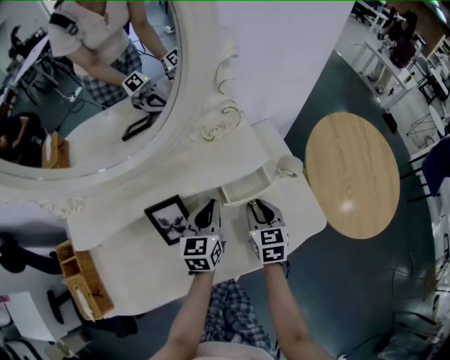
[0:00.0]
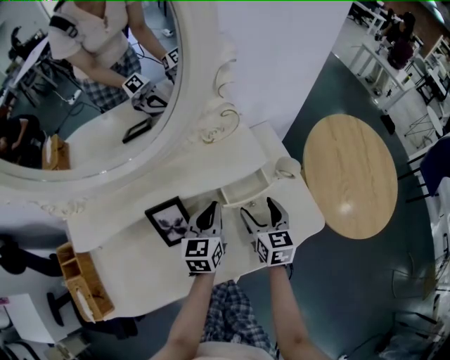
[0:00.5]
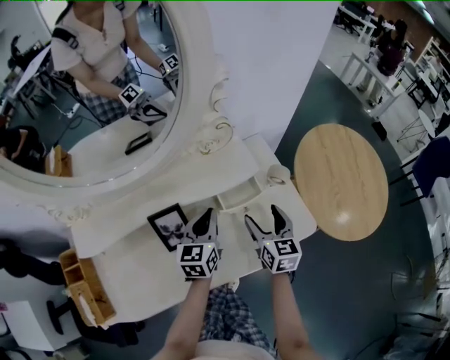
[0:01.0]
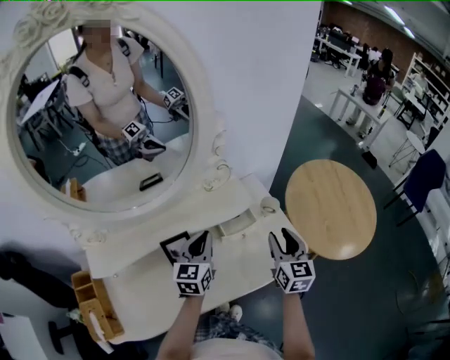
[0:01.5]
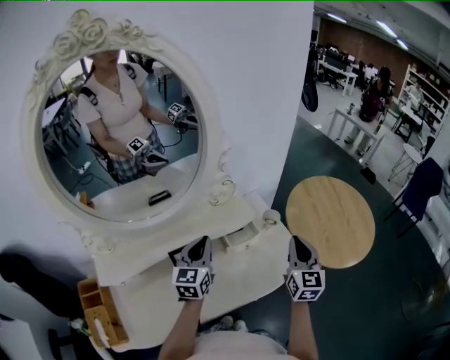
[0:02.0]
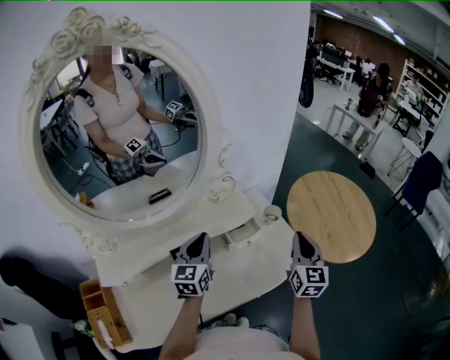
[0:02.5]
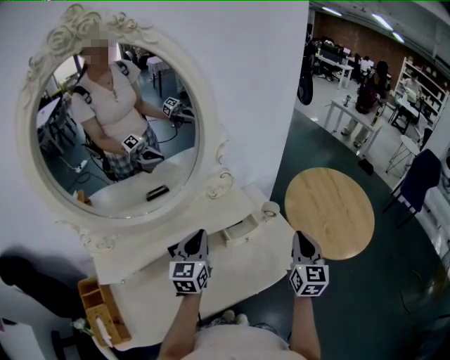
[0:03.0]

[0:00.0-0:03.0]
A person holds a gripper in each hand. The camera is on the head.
0:00.0 to 0:01.5: The right gripper travels upward and to the right by about 20 cm, rotates some 20 degrees, and opens, then closes again. Meanwhile the left gripper shifts roughly 15 cm upward.
0:01.5 to 0:03.0: The right gripper moves upward, approximately 5 cm, and closes its fingers. The left gripper changes place by approximately 5 cm.

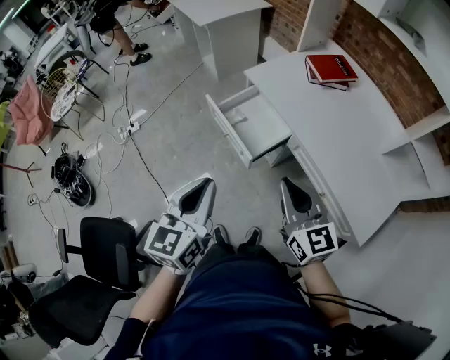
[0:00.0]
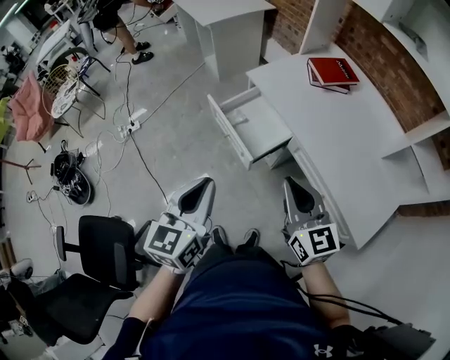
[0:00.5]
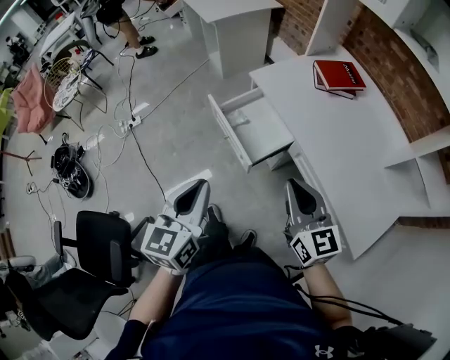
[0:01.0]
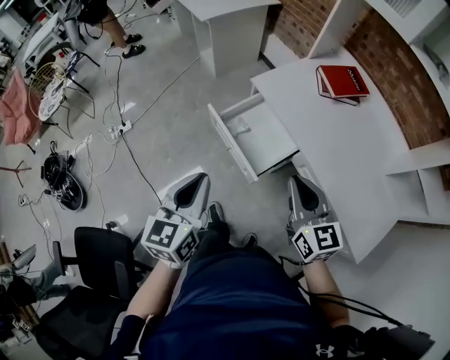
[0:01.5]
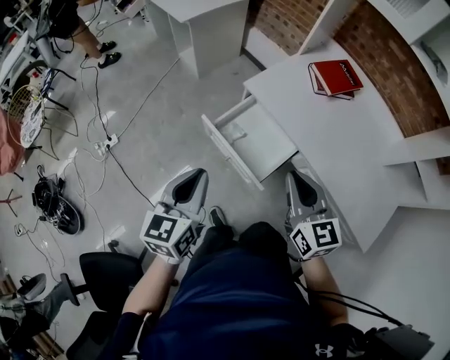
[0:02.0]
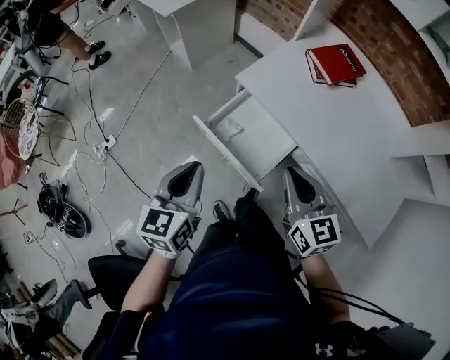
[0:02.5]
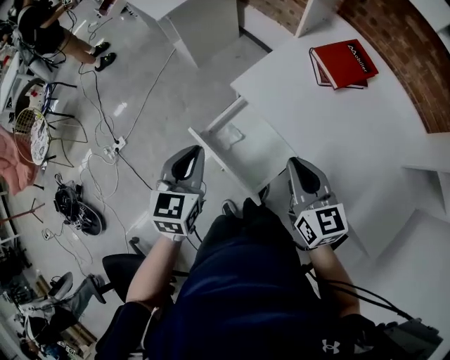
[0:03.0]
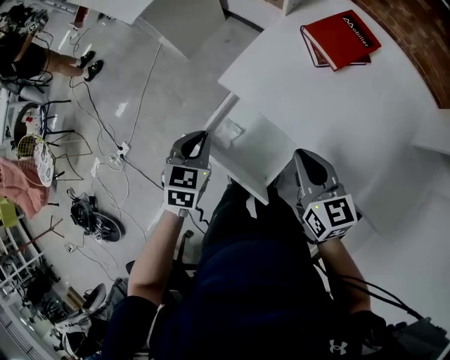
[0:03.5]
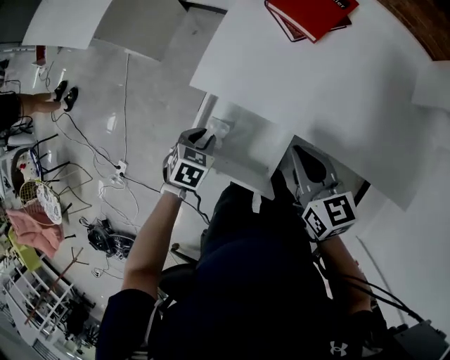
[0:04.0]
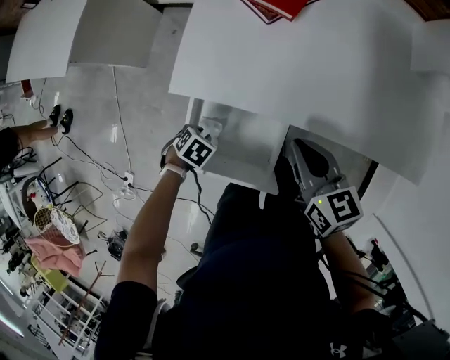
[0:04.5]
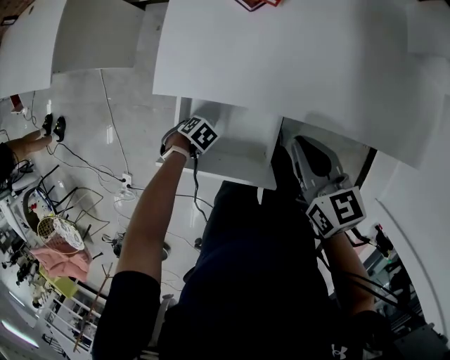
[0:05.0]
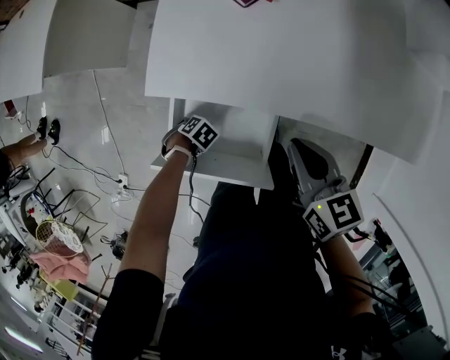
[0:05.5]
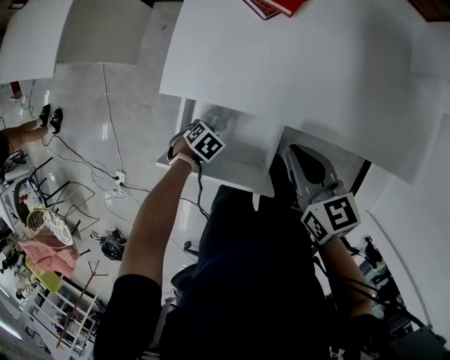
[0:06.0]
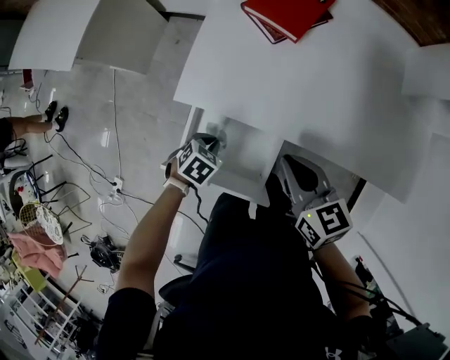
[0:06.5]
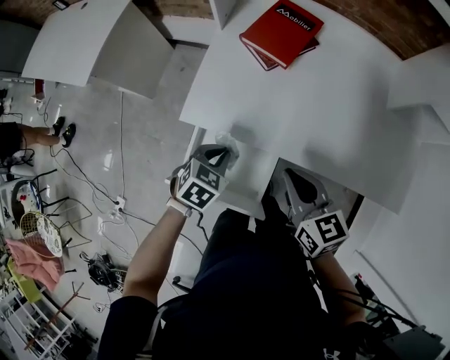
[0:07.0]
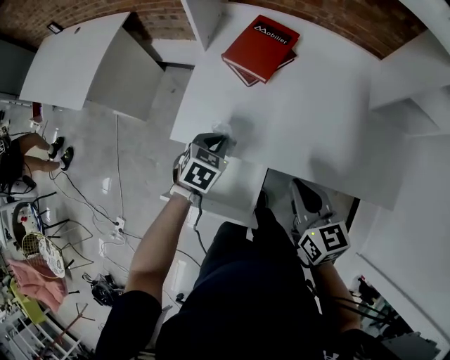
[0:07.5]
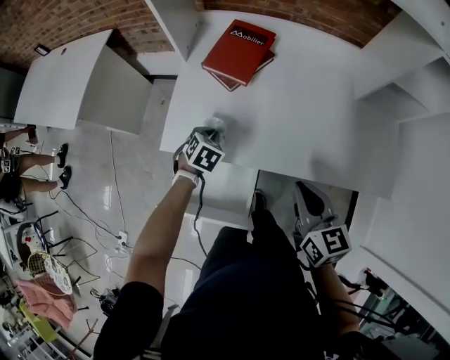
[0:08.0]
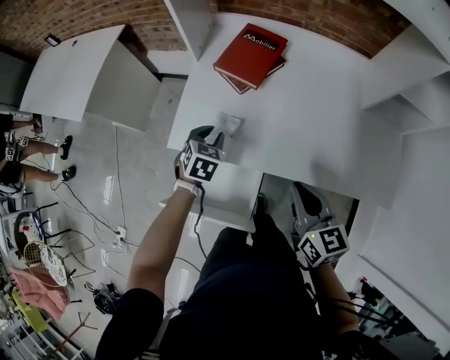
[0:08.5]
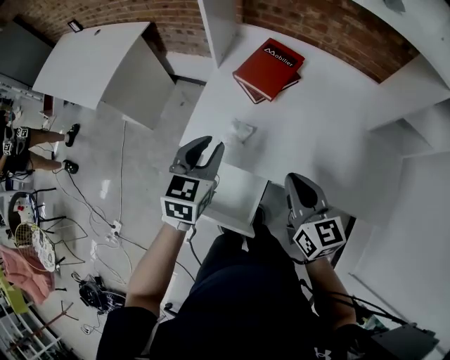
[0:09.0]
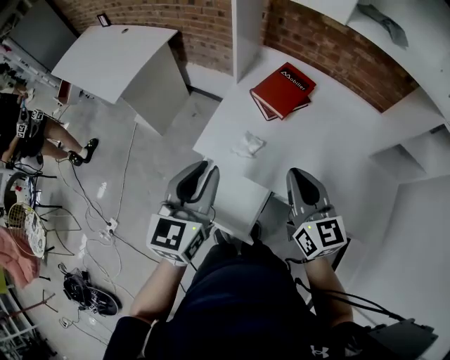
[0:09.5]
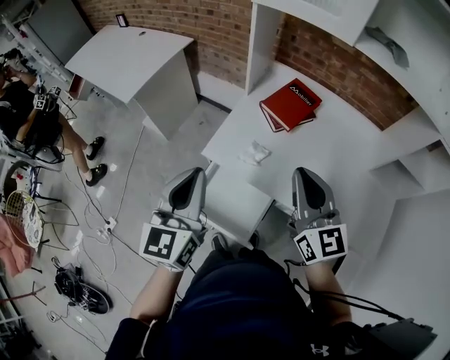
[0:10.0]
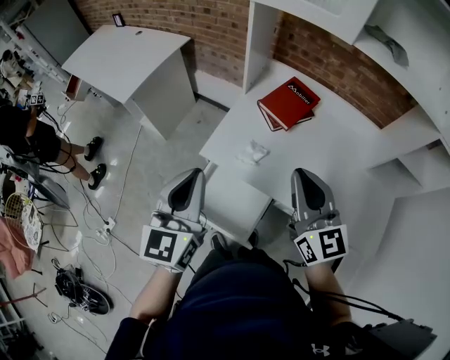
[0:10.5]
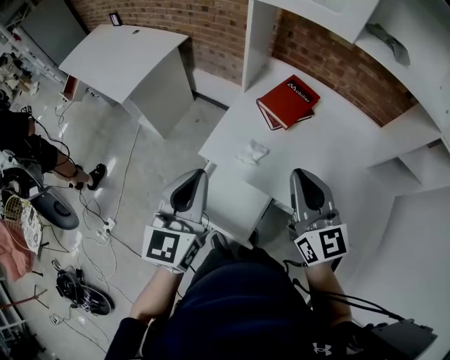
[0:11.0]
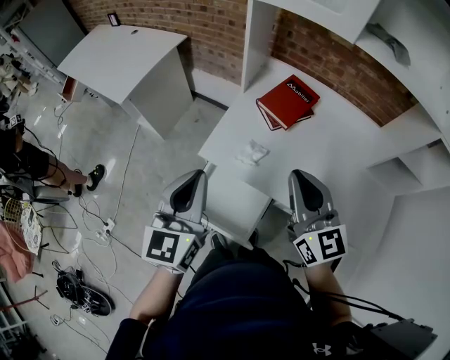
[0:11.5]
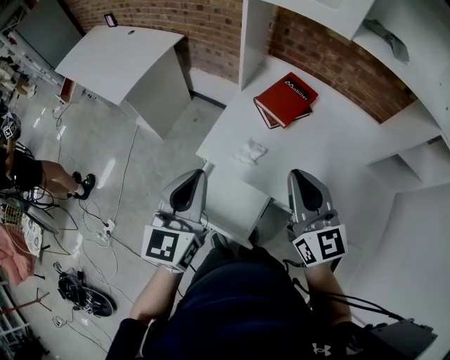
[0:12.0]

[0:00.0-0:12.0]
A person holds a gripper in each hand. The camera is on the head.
0:00.0 to 0:02.0: The right gripper moves forward, roughly 20 cm, while the left gripper goes approximately 25 cm forward and to the left.
0:02.0 to 0:04.0: The right gripper shifts by approximately 25 cm, and turns by roughly 30 degrees, while the left gripper goes roughly 25 cm downward, tilts its fingers some 50 degrees downward, and opens.
0:04.0 to 0:06.0: The left gripper shifts approximately 15 cm downward, rotates some 30 degrees, and closes.
0:06.0 to 0:08.0: The left gripper shifts by approximately 30 cm, and rotates approximately 30 degrees, while the right gripper moves some 15 cm.
0:08.0 to 0:10.0: The right gripper travels upward and to the left by roughly 20 cm, and rotates about 30 degrees, while the left gripper heads upward and backward, covering roughly 40 cm, tilts its fingers approximately 60 degrees upward, and opens and closes again.
0:10.0 to 0:12.0: There are only small adjustments of the grippers.

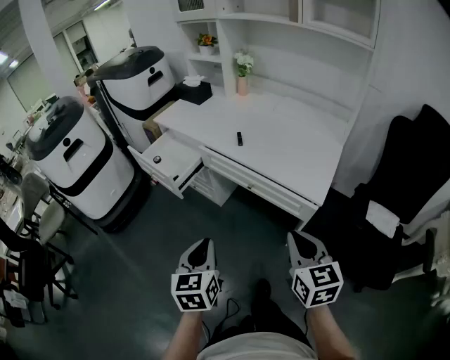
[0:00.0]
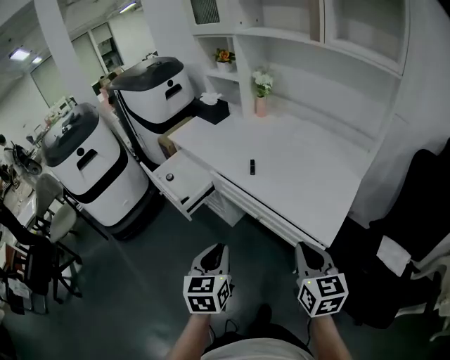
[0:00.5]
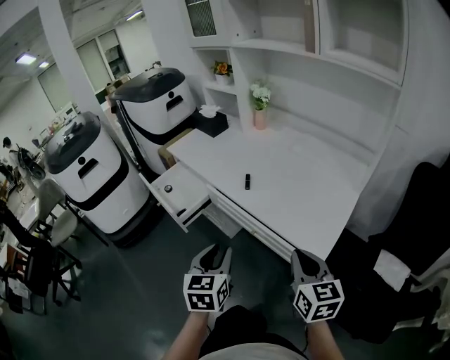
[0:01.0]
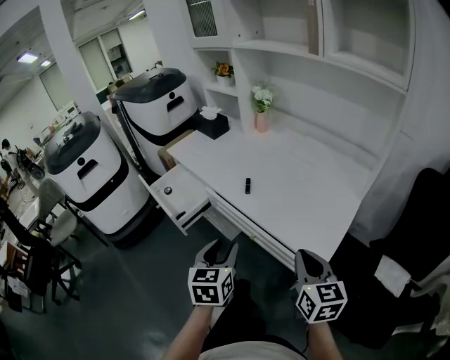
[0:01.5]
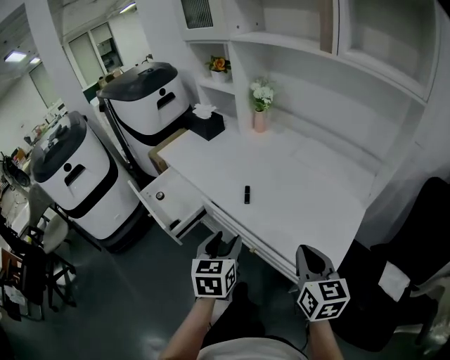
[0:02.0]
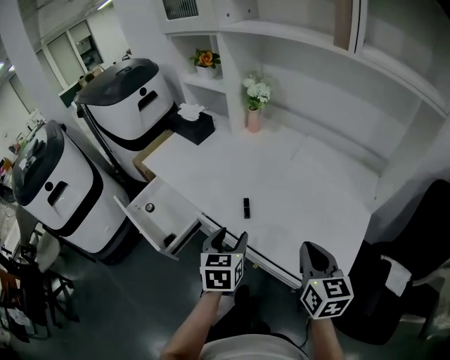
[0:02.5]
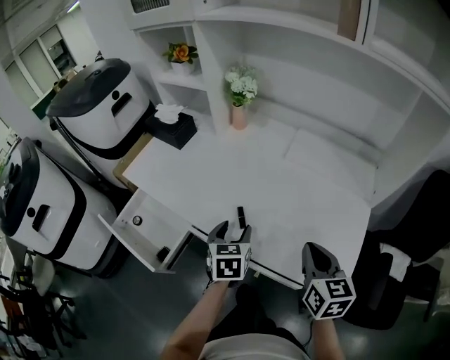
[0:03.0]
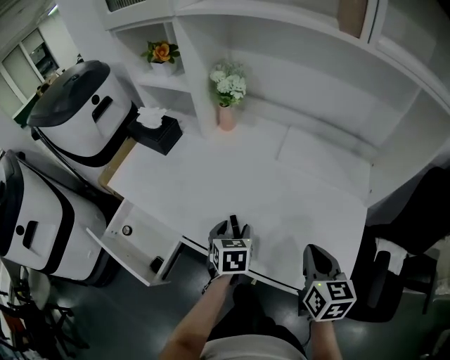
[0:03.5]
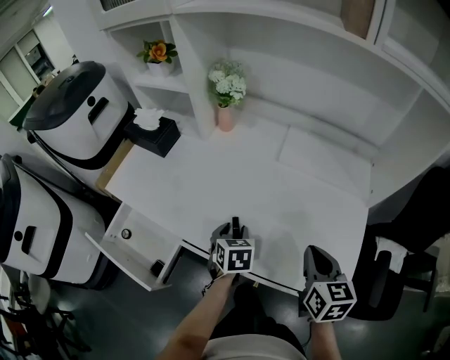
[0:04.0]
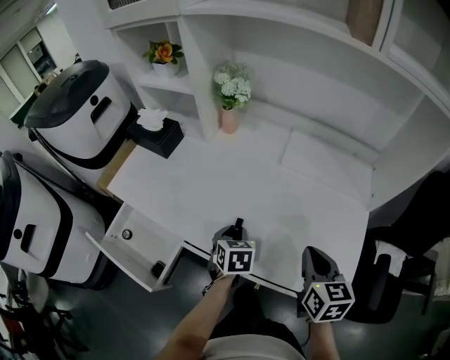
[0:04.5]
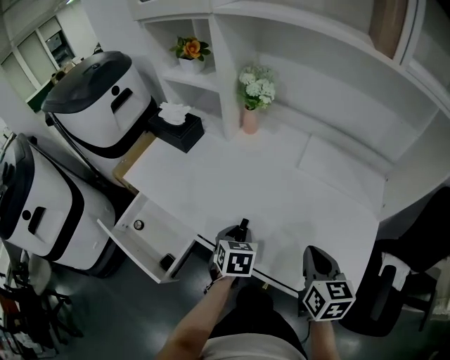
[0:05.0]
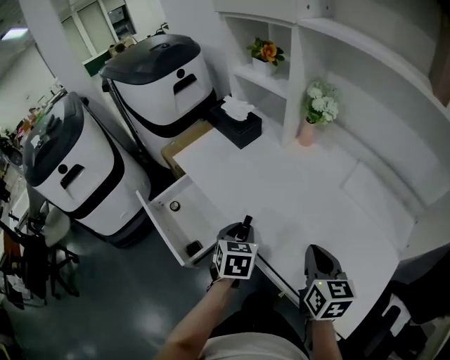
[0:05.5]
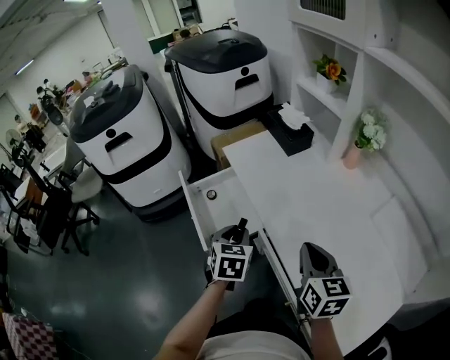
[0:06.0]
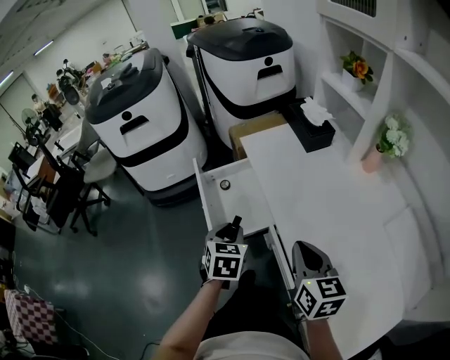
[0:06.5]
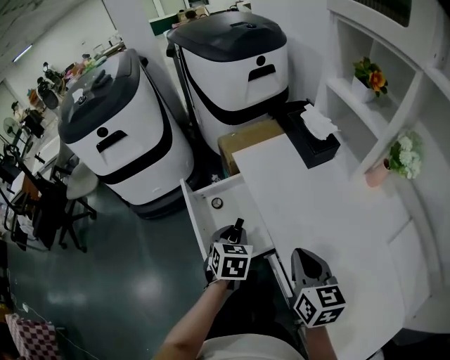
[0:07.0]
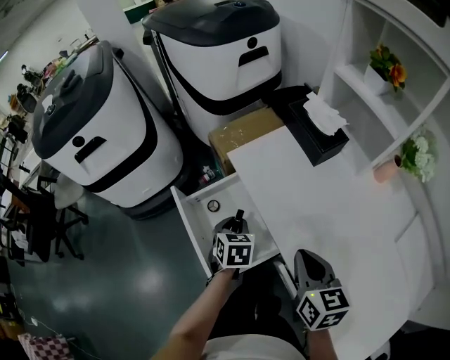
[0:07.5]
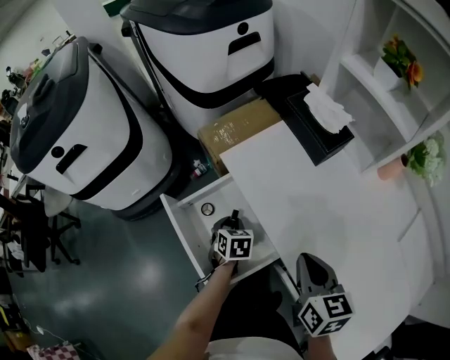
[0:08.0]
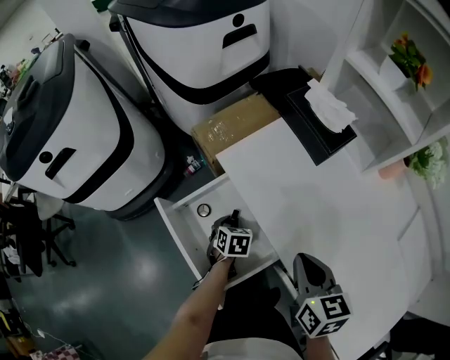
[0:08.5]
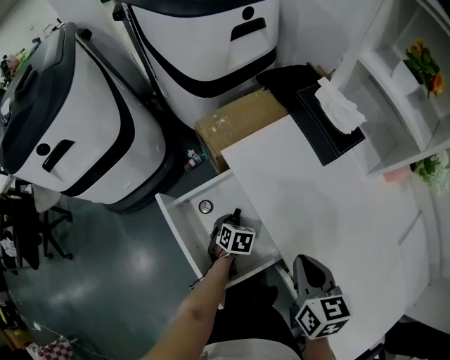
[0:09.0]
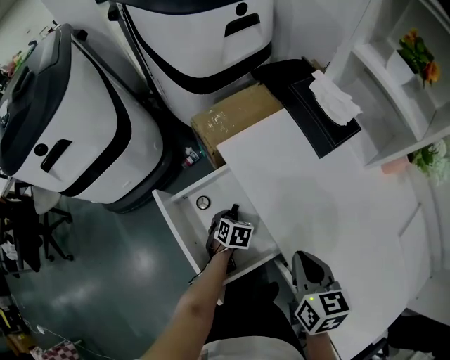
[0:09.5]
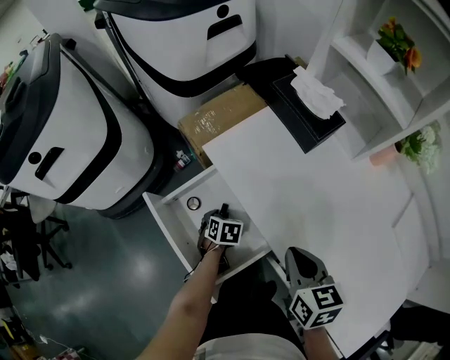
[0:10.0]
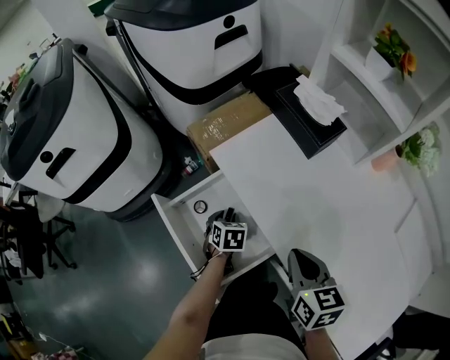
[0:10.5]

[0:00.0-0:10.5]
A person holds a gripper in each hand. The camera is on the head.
0:00.0 to 0:02.0: The left gripper goes roughly 30 cm forward and to the right, and opens its fingers, while the right gripper shifts some 20 cm forward.
0:02.0 to 0:04.0: The left gripper goes approximately 25 cm forward and downward, and changes its angle by some 30 degrees; the right gripper travels forward by approximately 15 cm, and rotates approximately 20 degrees.
0:04.0 to 0:06.5: The right gripper shifts by about 30 cm, and changes its angle by approximately 50 degrees; the left gripper changes place by roughly 30 cm, rotates about 40 degrees, and closes.
0:06.5 to 0:08.5: The left gripper heads downward and forward, covering approximately 35 cm, and changes its angle by approximately 20 degrees. The right gripper shifts roughly 20 cm forward and downward, and changes its angle by approximately 20 degrees.
0:08.5 to 0:10.5: The grippers move only a little.

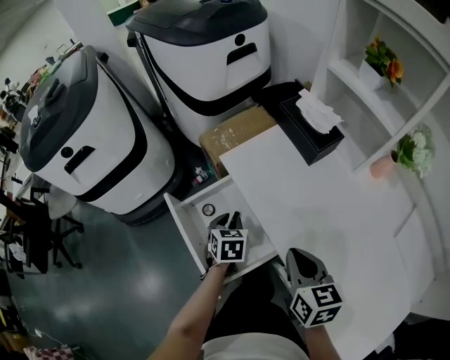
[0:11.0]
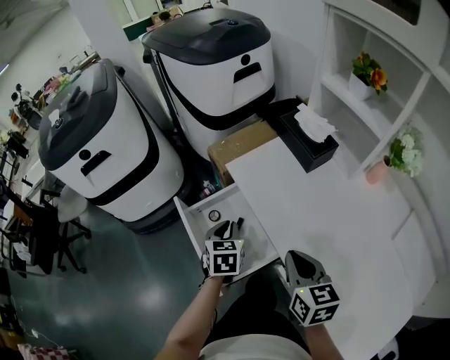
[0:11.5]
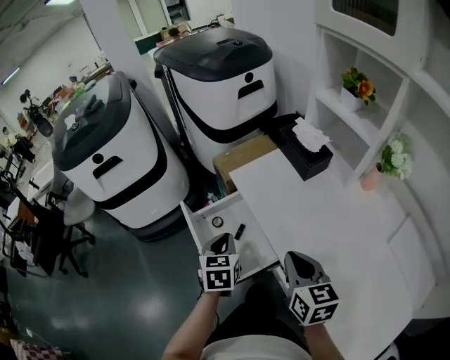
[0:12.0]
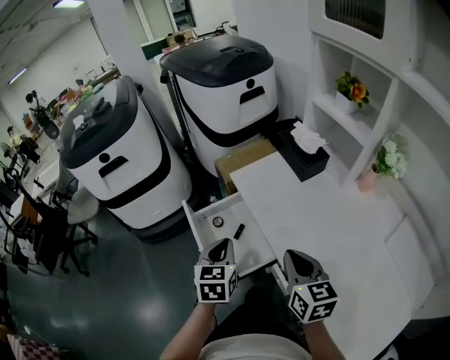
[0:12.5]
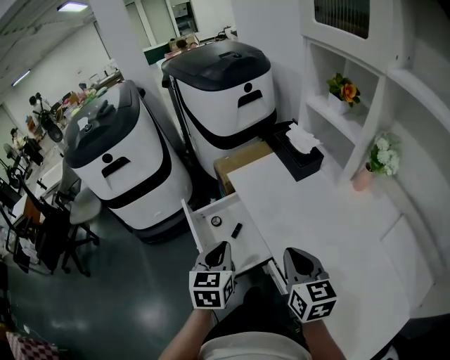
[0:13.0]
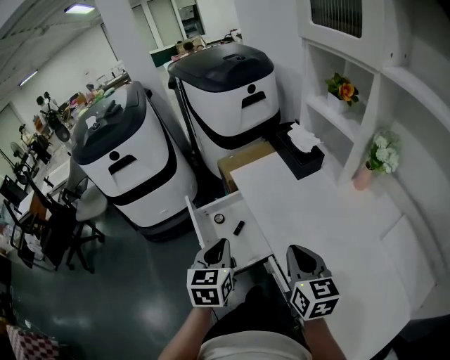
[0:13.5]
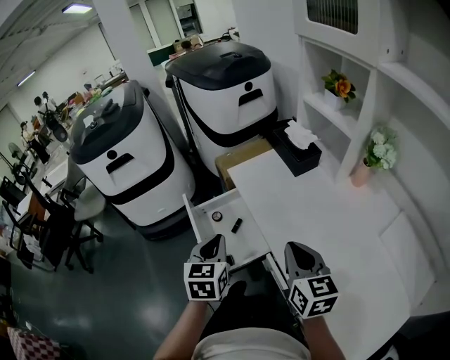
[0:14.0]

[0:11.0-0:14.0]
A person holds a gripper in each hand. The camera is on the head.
0:11.0 to 0:12.5: The right gripper shifts approximately 5 cm upward; the left gripper goes roughly 20 cm upward and backward, changes its angle by roughly 20 degrees, and closes.
0:12.5 to 0:14.0: The left gripper changes place by about 5 cm.
